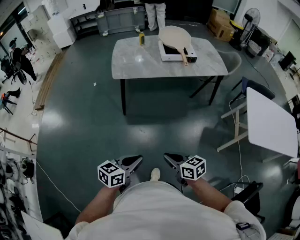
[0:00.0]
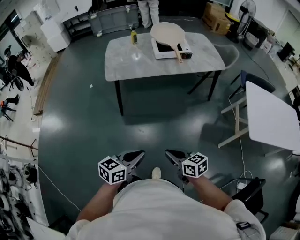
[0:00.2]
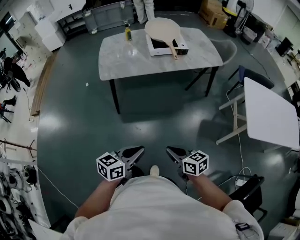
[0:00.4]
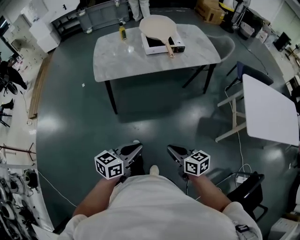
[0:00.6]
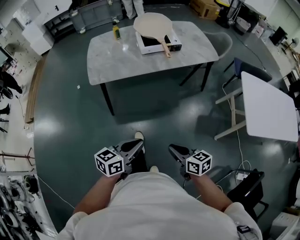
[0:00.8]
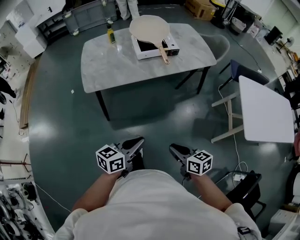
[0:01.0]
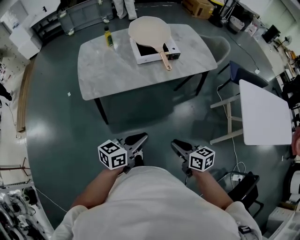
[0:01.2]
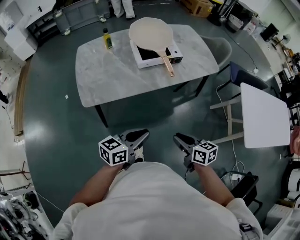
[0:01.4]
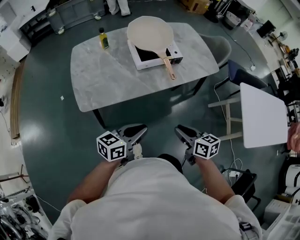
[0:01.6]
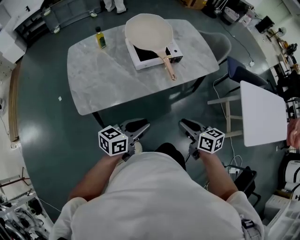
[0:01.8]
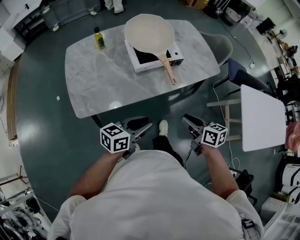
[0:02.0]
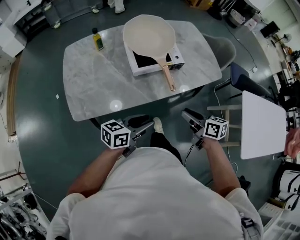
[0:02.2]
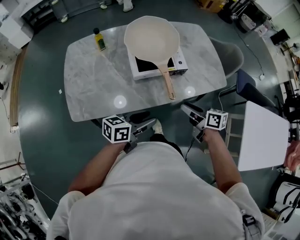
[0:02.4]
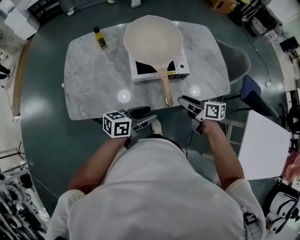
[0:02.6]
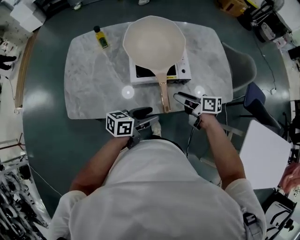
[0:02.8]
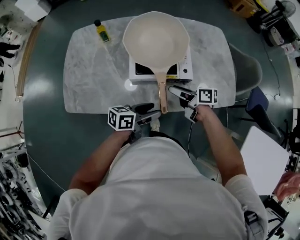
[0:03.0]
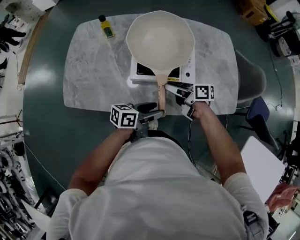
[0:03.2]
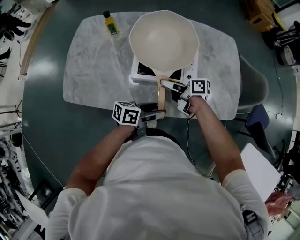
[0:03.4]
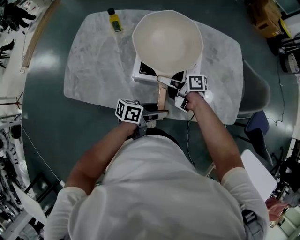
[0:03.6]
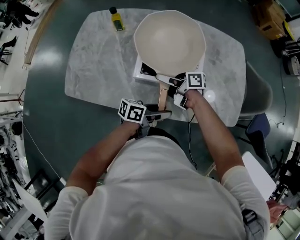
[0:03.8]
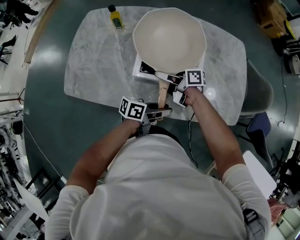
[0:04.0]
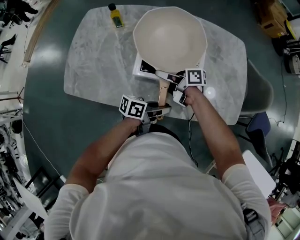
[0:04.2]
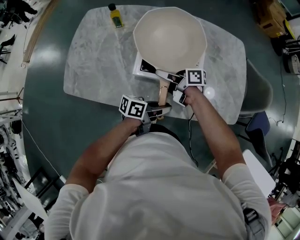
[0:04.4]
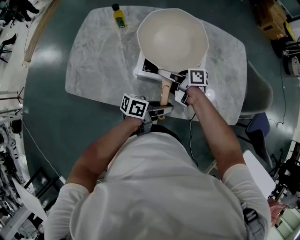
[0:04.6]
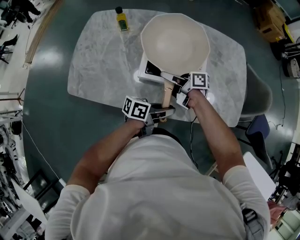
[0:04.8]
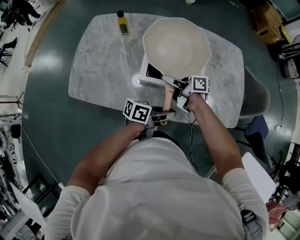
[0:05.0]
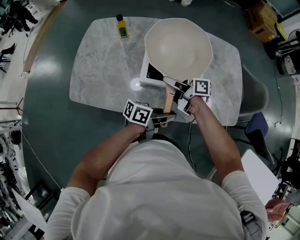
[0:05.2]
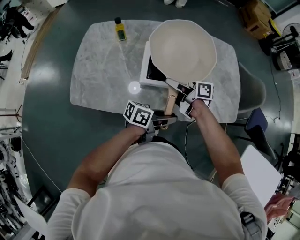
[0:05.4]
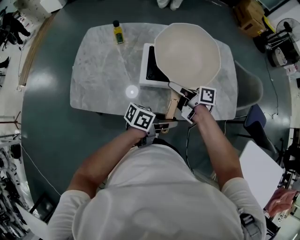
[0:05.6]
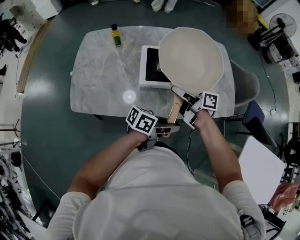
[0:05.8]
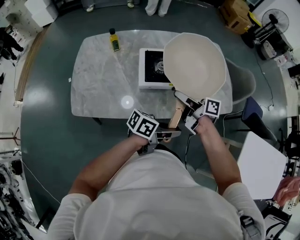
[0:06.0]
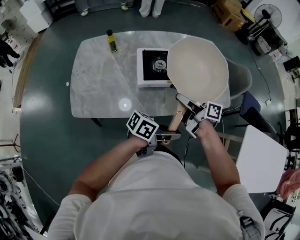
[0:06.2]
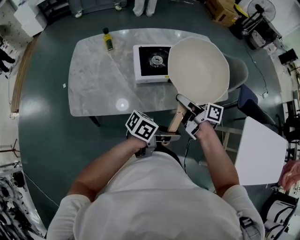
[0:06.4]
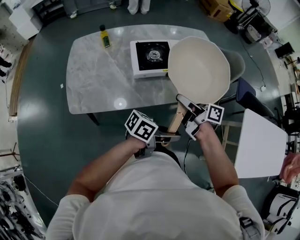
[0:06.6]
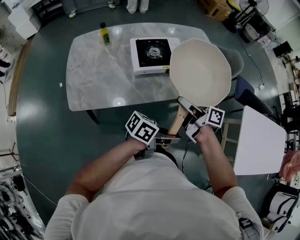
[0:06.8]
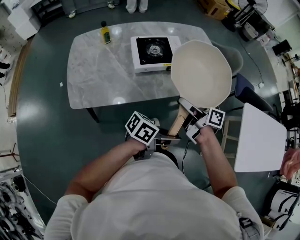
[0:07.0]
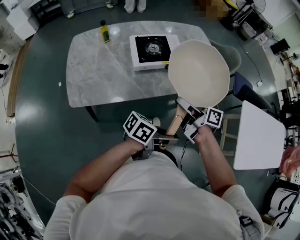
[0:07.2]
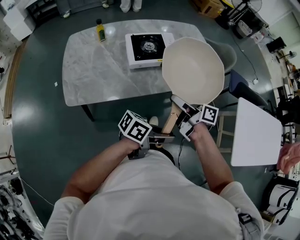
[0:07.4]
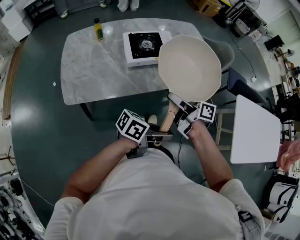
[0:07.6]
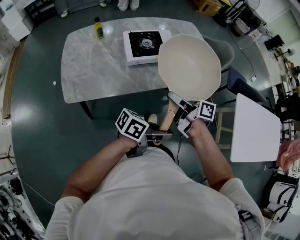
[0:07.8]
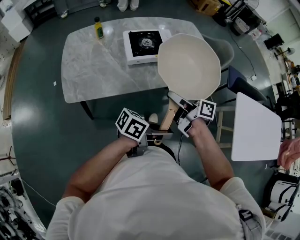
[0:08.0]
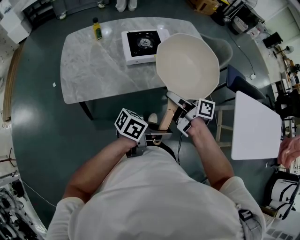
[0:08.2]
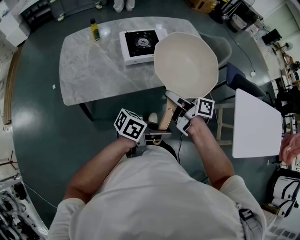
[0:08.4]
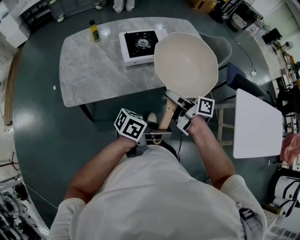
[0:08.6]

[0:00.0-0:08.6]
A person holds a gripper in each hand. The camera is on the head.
0:00.0 to 0:01.4: The two grippers go about 35 cm forward. The right gripper swivels some 20 degrees.
0:01.4 to 0:02.8: The two grippers go some 35 cm forward. The right gripper swivels approximately 30 degrees, and opens up; the left gripper opens its fingers.
0:02.8 to 0:04.4: The right gripper changes place by about 15 cm, and rotates about 30 degrees. Meanwhile the left gripper ends up roughly 15 cm from where it was, and closes its fingers.
0:04.4 to 0:05.8: The left gripper shifts by some 15 cm, and swivels roughly 20 degrees. The right gripper is displaced upward by roughly 10 cm, and changes its angle by approximately 20 degrees.
0:05.8 to 0:07.2: The left gripper ends up roughly 25 cm from where it was; the right gripper changes place by approximately 20 cm.
0:07.2 to 0:08.6: The two grippers keep their place.

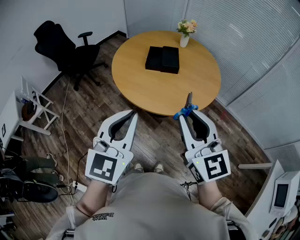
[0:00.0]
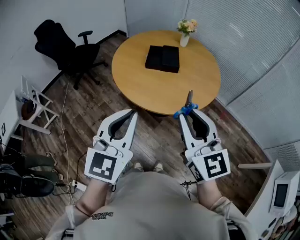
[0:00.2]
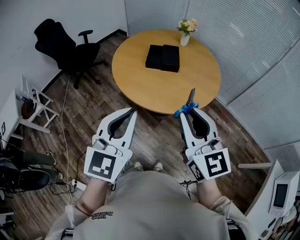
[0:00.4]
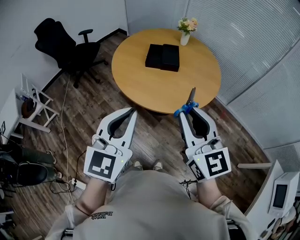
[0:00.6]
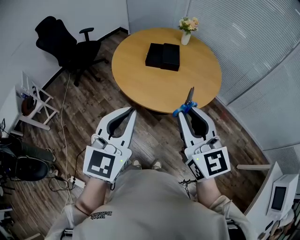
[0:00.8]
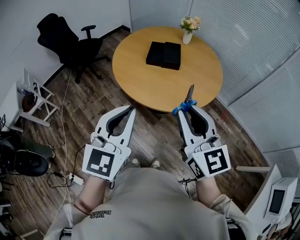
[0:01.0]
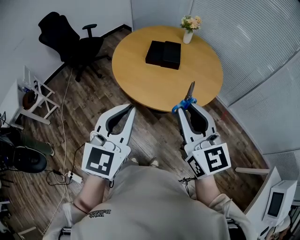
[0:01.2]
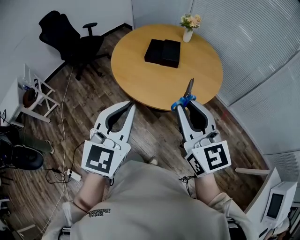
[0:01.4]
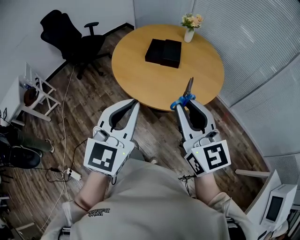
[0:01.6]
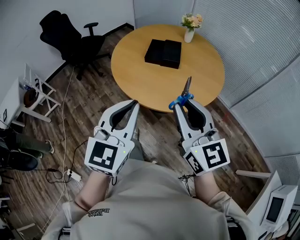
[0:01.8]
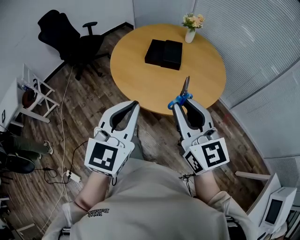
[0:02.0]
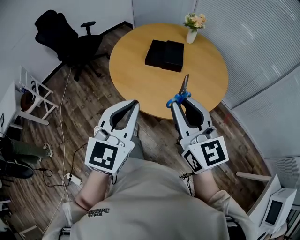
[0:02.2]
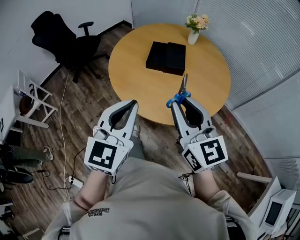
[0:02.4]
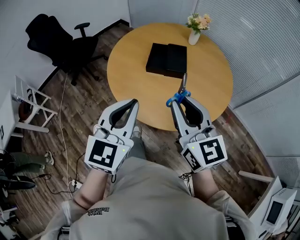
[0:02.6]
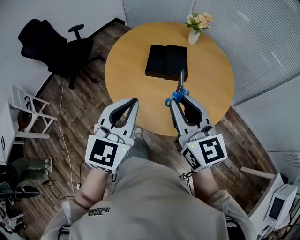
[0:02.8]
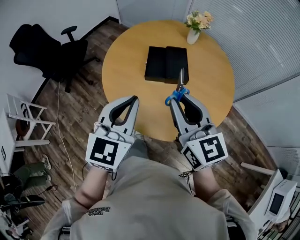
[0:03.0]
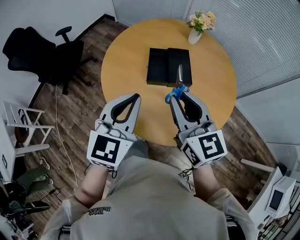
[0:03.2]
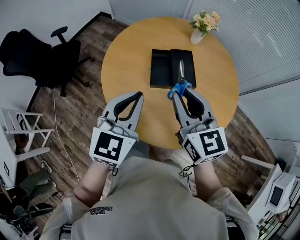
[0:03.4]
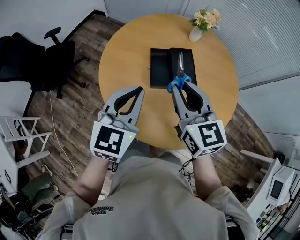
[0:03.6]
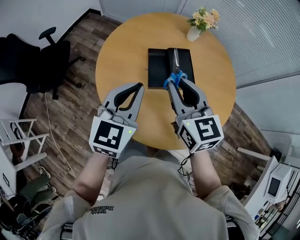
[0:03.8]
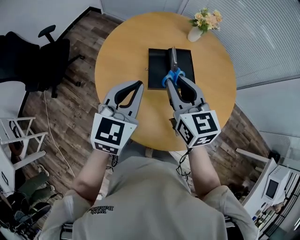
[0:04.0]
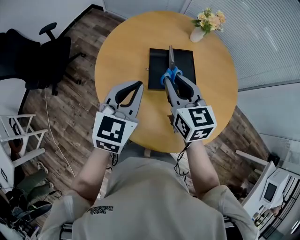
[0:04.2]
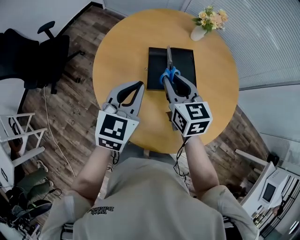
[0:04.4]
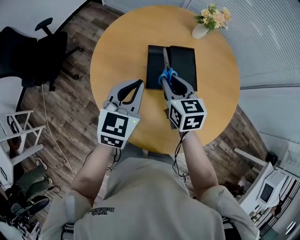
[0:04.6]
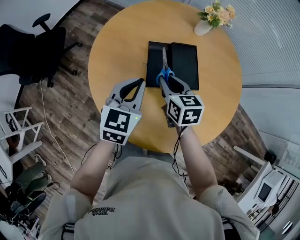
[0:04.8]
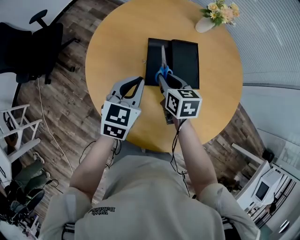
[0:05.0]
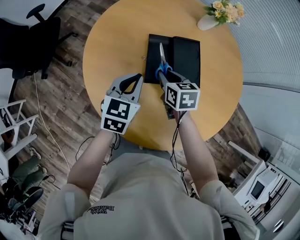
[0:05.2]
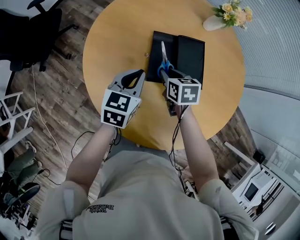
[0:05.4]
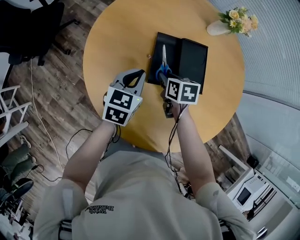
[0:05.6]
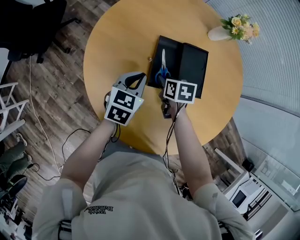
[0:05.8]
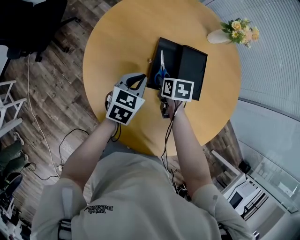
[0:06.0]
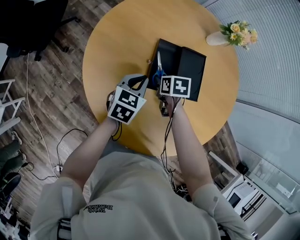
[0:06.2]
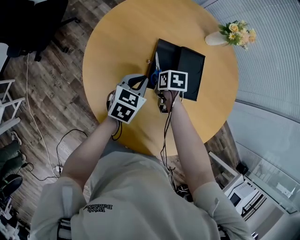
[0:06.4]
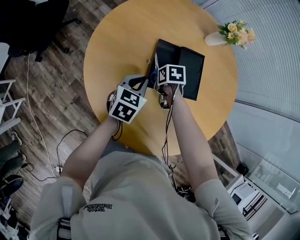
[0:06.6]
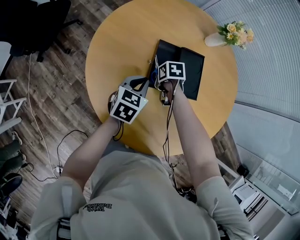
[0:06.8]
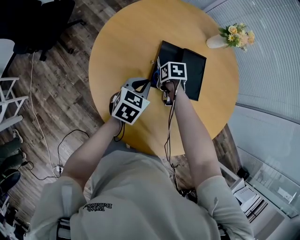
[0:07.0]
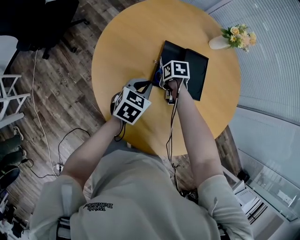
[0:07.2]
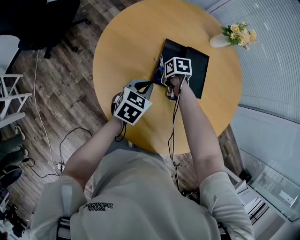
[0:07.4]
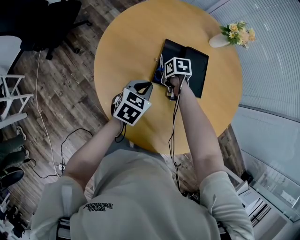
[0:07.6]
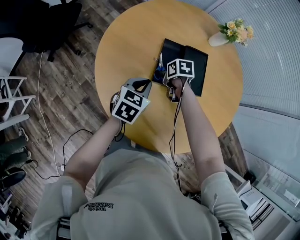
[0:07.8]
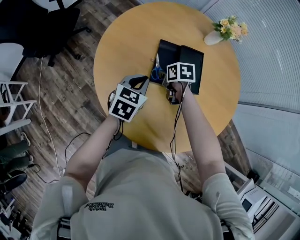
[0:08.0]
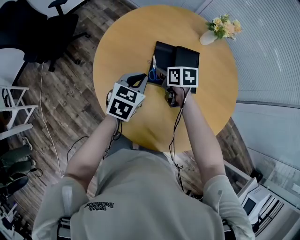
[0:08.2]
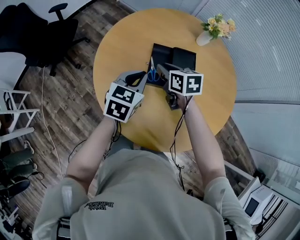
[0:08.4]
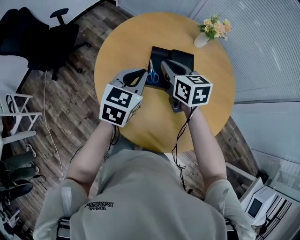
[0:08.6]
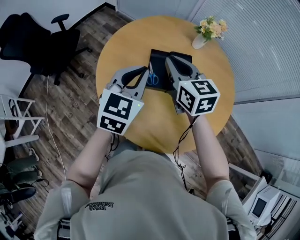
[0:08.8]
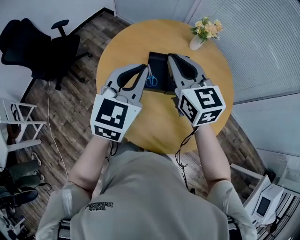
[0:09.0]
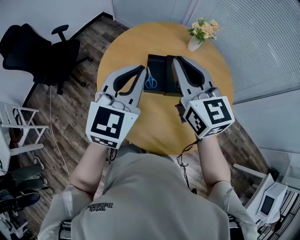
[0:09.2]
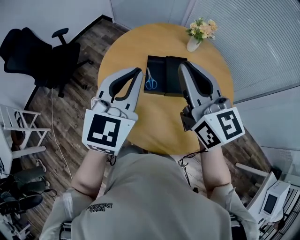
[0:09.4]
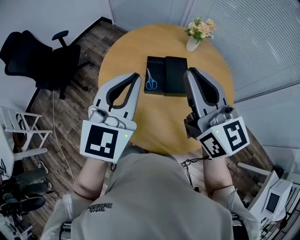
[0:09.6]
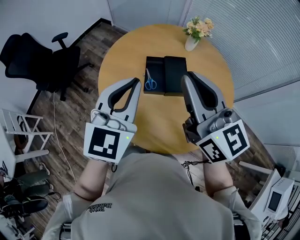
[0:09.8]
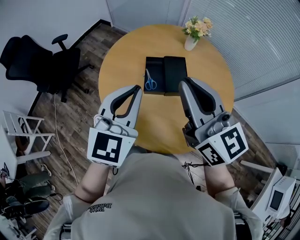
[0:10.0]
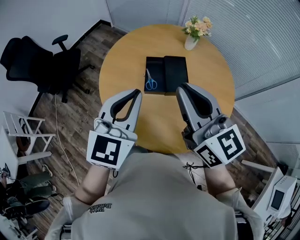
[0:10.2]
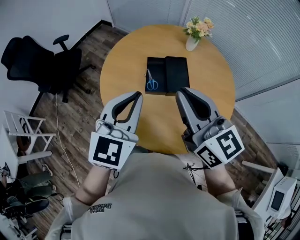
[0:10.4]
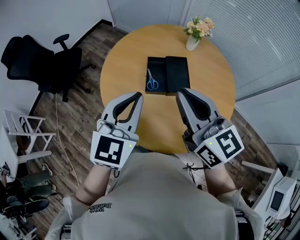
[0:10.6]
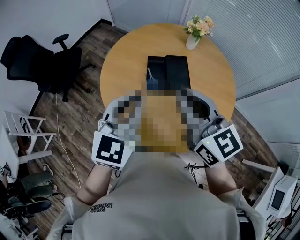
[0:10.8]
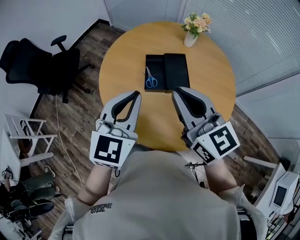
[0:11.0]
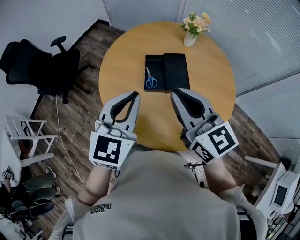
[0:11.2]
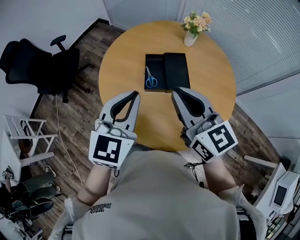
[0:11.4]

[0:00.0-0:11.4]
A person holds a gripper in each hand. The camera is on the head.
0:00.0 to 0:01.4: The grippers stay close to where they were, moving slightly.
0:01.4 to 0:02.8: The two grippers go approximately 25 cm forward.
0:02.8 to 0:04.2: The right gripper moves forward and to the left, some 30 cm, and turns by some 20 degrees. Meanwhile the left gripper goes some 25 cm forward.
0:04.2 to 0:05.6: Both grippers travel together downward, roughly 25 cm. The left gripper turns by approximately 20 degrees. The right gripper angles its fingers downward, by roughly 40 degrees.
0:05.6 to 0:07.2: The right gripper heads downward, covering approximately 5 cm, and rotates about 20 degrees.
0:07.2 to 0:08.6: The left gripper is displaced upward by approximately 20 cm. Meanwhile the right gripper heads upward, covering some 30 cm, and tips its fingers upward by roughly 50 degrees.
0:08.6 to 0:10.0: Both grippers move upward and backward, some 25 cm. The right gripper tips its fingers upward by some 30 degrees; the left gripper changes its angle by roughly 20 degrees.
0:10.0 to 0:11.4: The right gripper heads downward, covering some 5 cm.

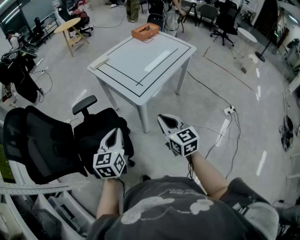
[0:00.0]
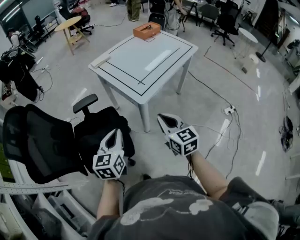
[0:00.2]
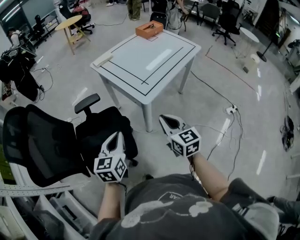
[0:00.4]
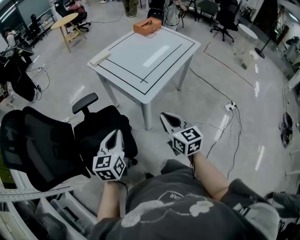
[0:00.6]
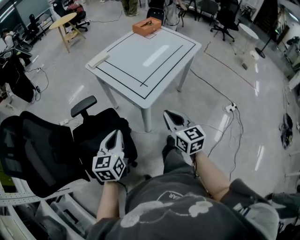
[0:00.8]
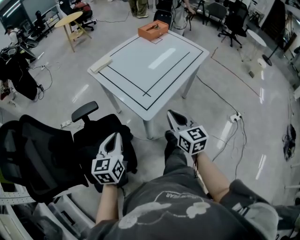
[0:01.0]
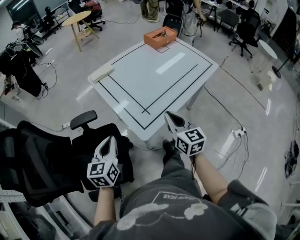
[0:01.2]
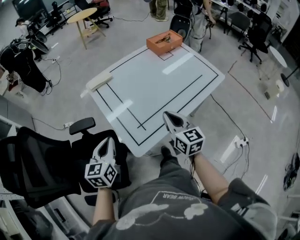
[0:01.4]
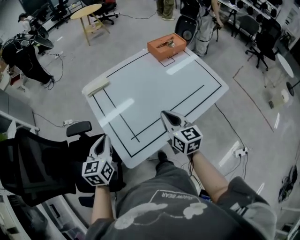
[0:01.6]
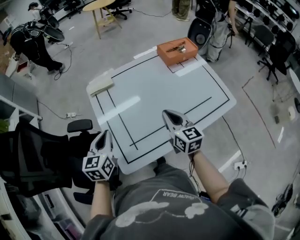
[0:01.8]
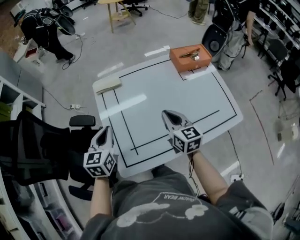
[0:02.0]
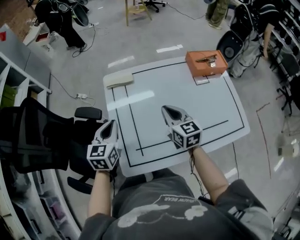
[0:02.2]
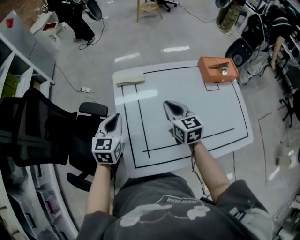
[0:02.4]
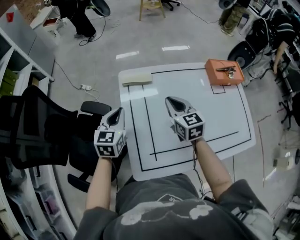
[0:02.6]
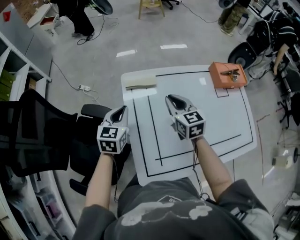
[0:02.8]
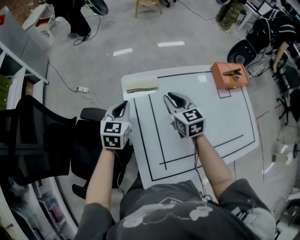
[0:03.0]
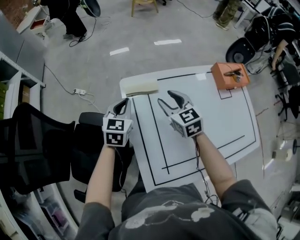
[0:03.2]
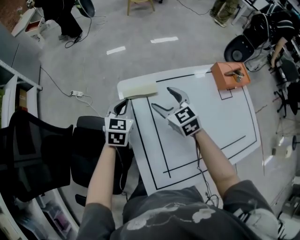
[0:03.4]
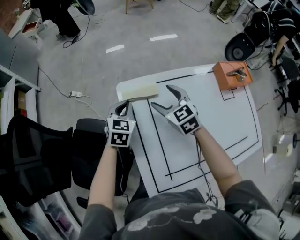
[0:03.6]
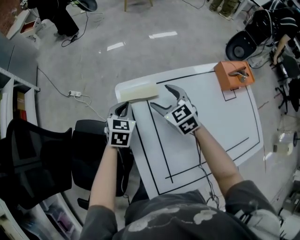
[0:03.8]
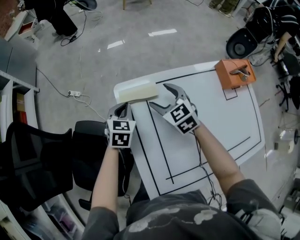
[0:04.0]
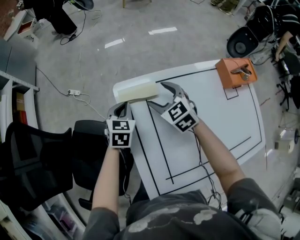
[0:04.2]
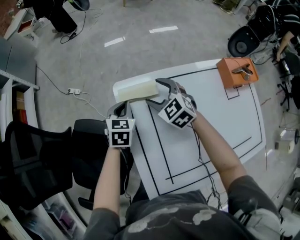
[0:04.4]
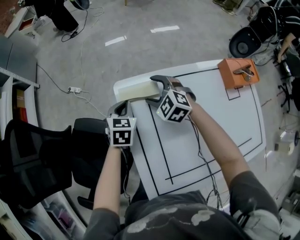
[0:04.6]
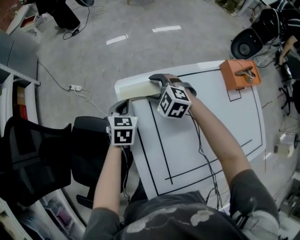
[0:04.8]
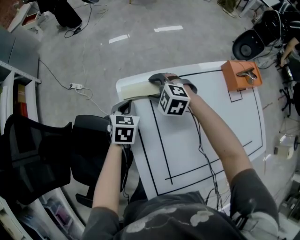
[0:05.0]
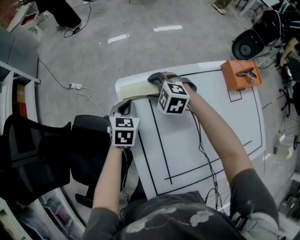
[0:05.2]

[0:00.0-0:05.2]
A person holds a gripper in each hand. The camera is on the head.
0:00.0 to 0:01.8: The left gripper changes place by roughly 40 cm, and rotates some 20 degrees. The right gripper moves some 50 cm.
0:01.8 to 0:03.4: The right gripper is displaced forward and to the left by about 35 cm, swivels approximately 40 degrees, and opens its fingers; the left gripper is displaced forward by about 30 cm.
0:03.4 to 0:05.2: The left gripper shifts some 5 cm downward; the right gripper heads downward and forward, covering about 10 cm, and rotates some 50 degrees.
